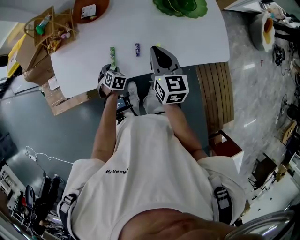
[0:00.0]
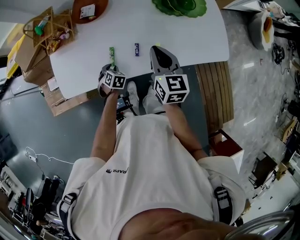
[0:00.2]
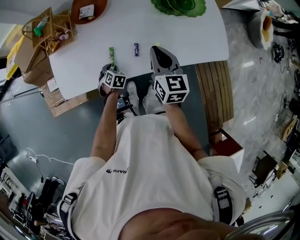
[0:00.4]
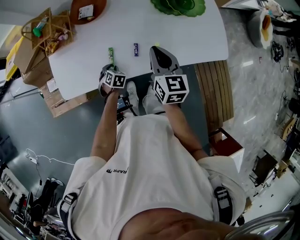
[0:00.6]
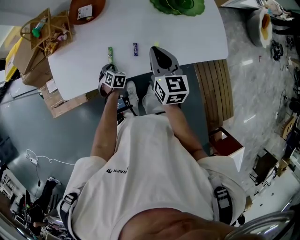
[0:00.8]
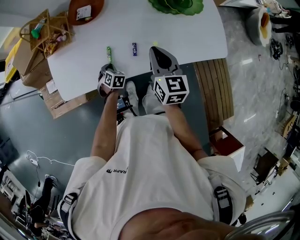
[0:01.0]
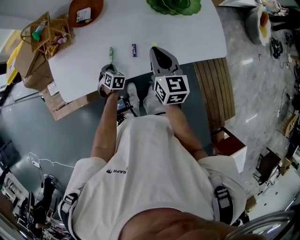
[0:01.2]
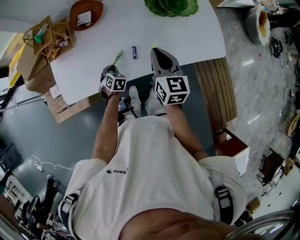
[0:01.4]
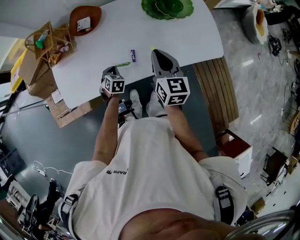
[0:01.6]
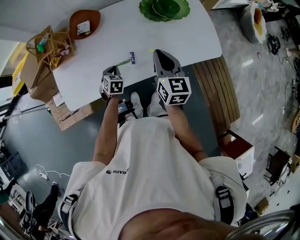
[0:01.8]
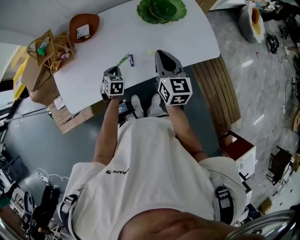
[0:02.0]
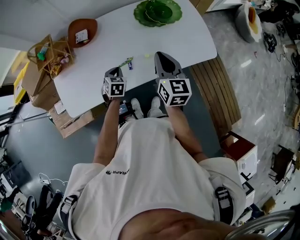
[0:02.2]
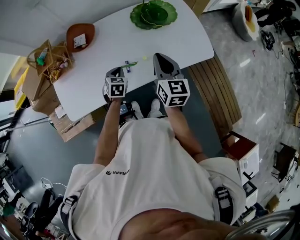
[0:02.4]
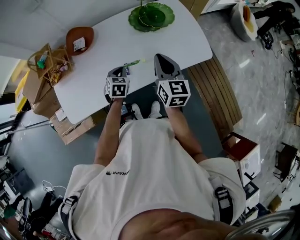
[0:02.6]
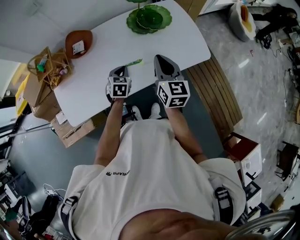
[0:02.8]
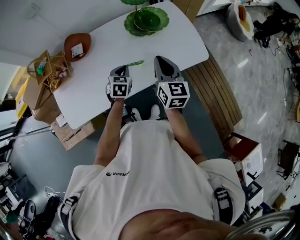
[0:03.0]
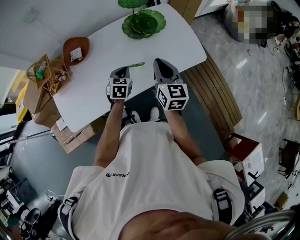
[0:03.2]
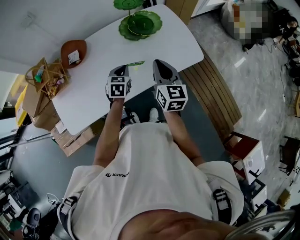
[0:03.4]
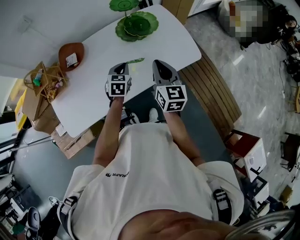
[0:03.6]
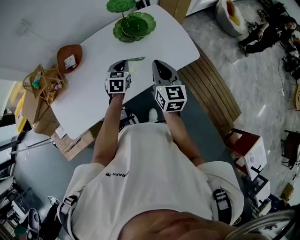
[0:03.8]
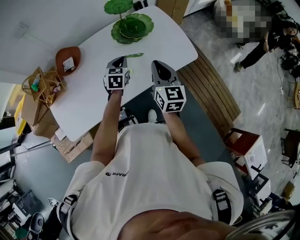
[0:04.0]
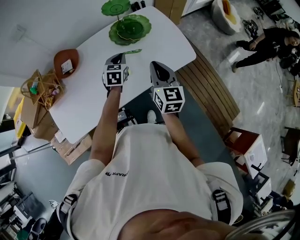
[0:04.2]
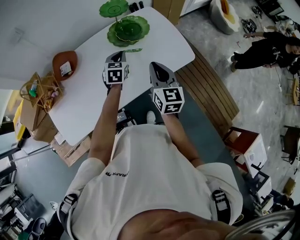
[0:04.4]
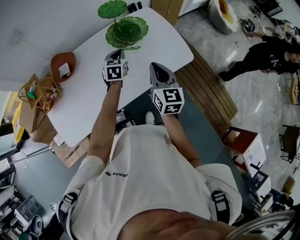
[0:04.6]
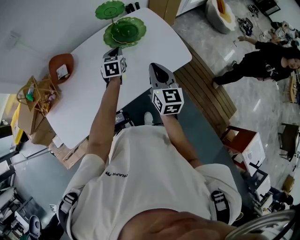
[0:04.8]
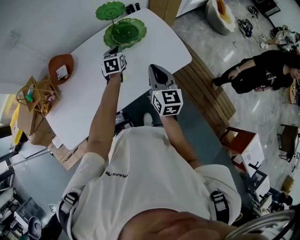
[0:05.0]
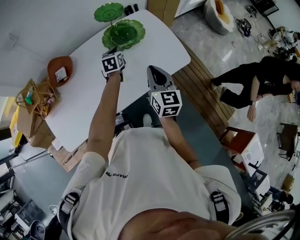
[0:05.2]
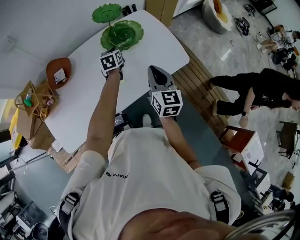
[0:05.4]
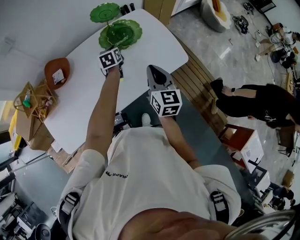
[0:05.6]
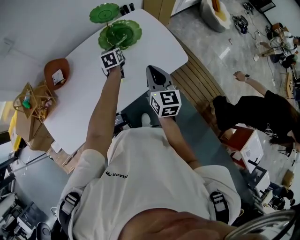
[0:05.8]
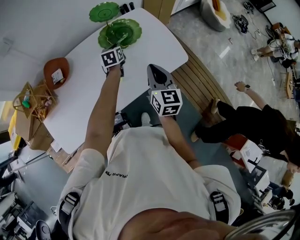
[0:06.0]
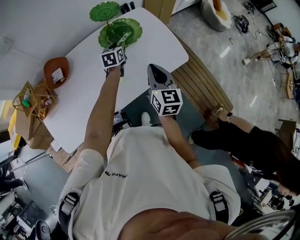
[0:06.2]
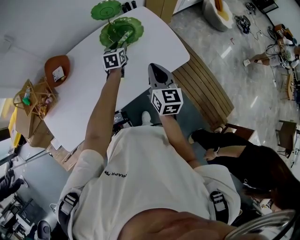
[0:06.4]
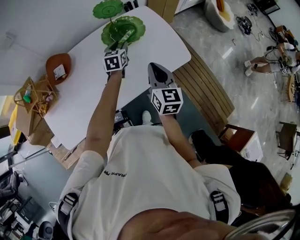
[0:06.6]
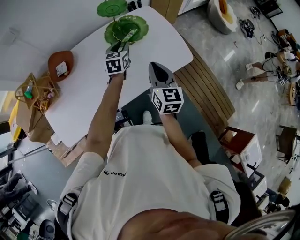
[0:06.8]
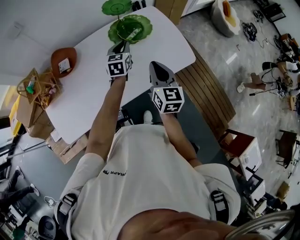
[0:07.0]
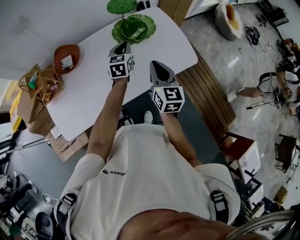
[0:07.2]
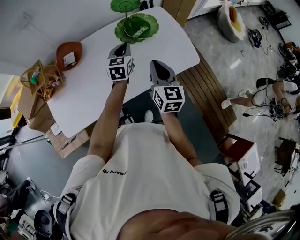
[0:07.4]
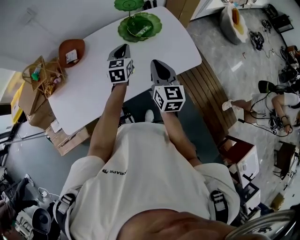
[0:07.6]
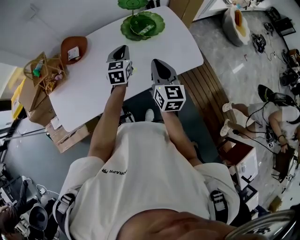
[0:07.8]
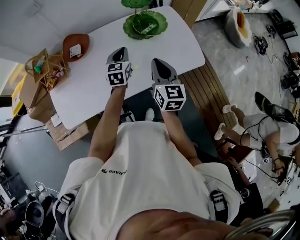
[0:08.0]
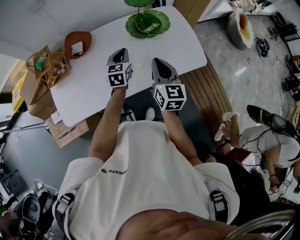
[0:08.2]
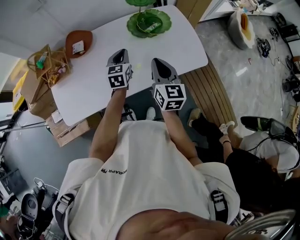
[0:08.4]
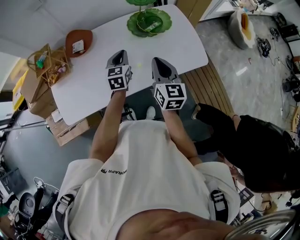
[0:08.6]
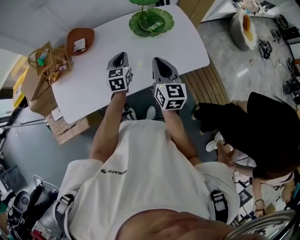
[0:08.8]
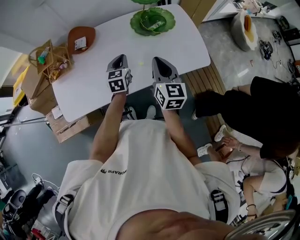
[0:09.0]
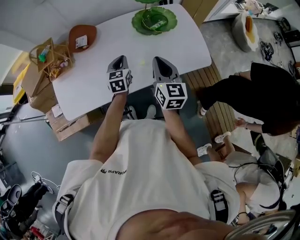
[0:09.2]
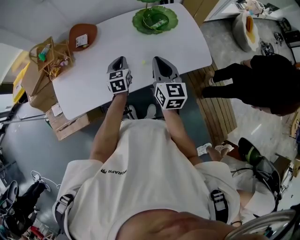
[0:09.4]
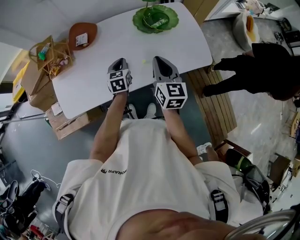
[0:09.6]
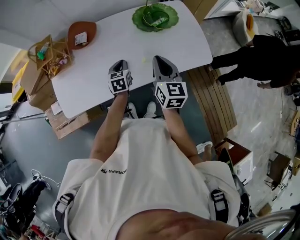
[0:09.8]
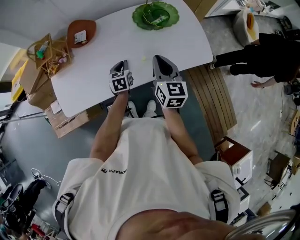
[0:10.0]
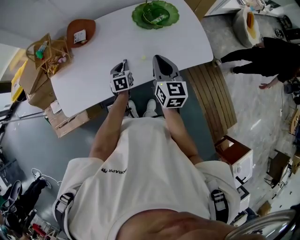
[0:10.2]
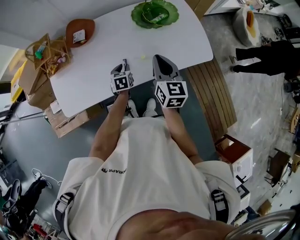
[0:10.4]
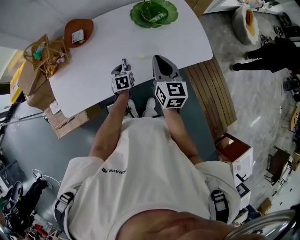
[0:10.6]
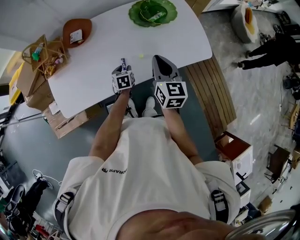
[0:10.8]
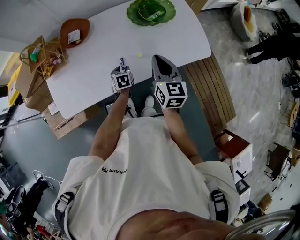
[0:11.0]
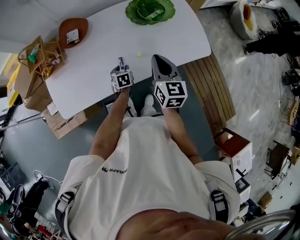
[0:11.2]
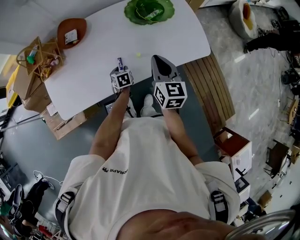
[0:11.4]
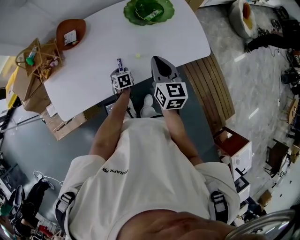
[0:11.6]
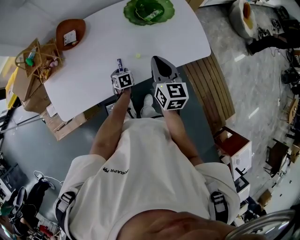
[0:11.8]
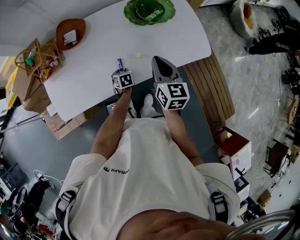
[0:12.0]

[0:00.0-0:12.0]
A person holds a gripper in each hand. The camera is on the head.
0:00.0 to 0:01.6: The left gripper changes place by roughly 5 cm, and closes its fingers.
0:01.6 to 0:03.0: The right gripper moves to the right and upward, approximately 10 cm, while the left gripper travels to the right and upward by about 20 cm, and turns by some 20 degrees.
0:03.0 to 0:04.4: The right gripper travels to the right by some 5 cm, while the left gripper goes some 15 cm forward, to the right and upward.
0:04.4 to 0:06.0: The left gripper shifts about 10 cm forward.
0:06.0 to 0:07.6: The right gripper travels to the left by some 5 cm, while the left gripper heads backward and upward, covering approximately 15 cm, and opens and closes again.
0:07.6 to 0:09.0: The left gripper shifts approximately 10 cm to the left, backward and downward.
0:09.0 to 0:10.4: The left gripper heads downward, covering approximately 15 cm.
0:10.4 to 0:12.0: The left gripper is displaced downward by approximately 10 cm.

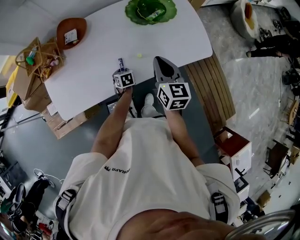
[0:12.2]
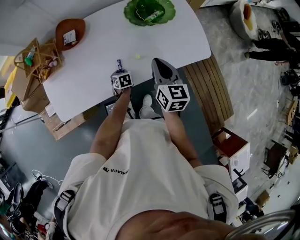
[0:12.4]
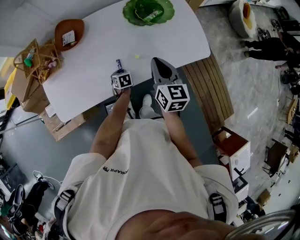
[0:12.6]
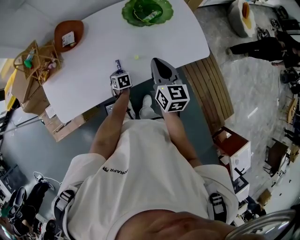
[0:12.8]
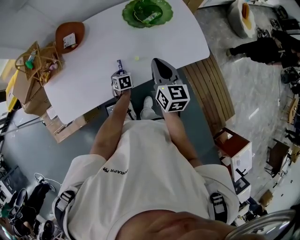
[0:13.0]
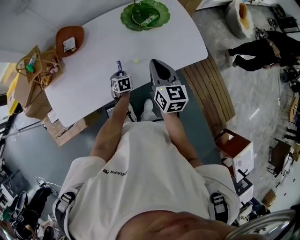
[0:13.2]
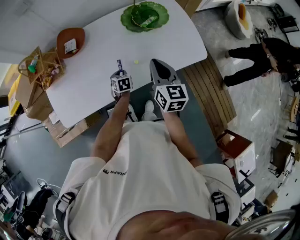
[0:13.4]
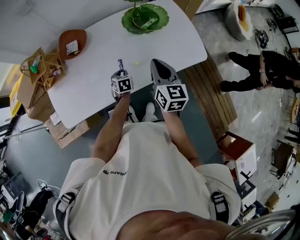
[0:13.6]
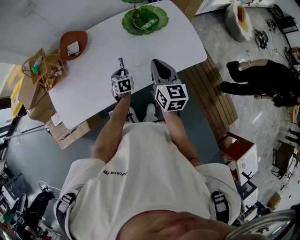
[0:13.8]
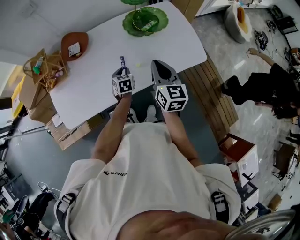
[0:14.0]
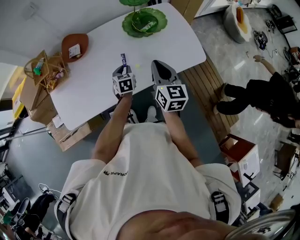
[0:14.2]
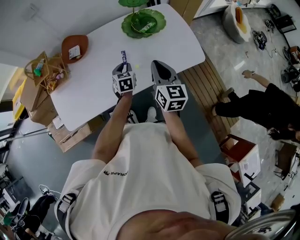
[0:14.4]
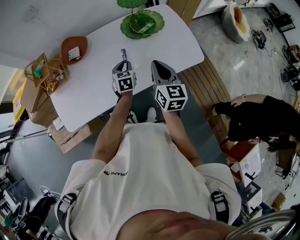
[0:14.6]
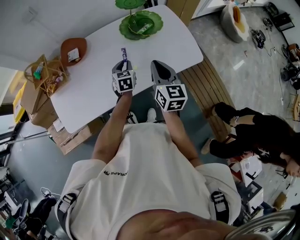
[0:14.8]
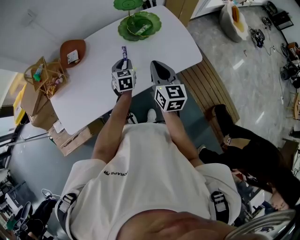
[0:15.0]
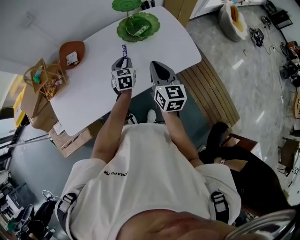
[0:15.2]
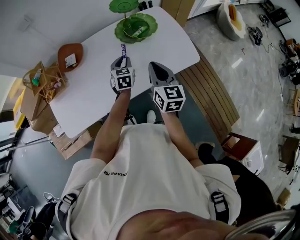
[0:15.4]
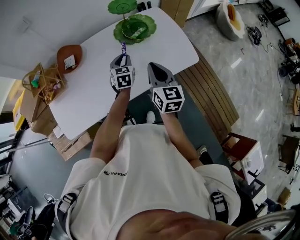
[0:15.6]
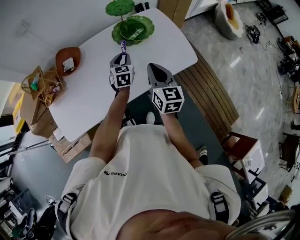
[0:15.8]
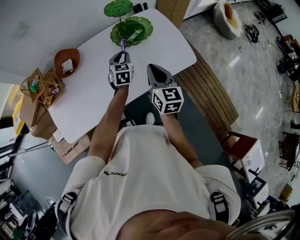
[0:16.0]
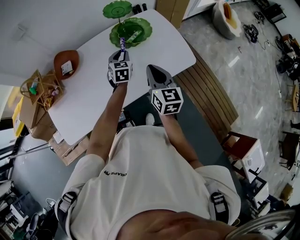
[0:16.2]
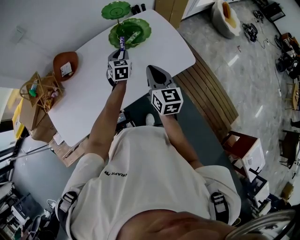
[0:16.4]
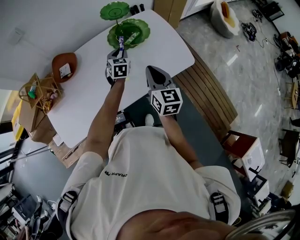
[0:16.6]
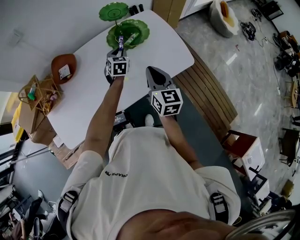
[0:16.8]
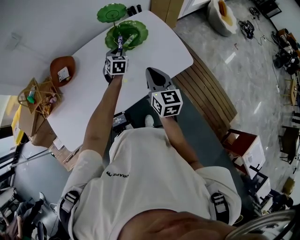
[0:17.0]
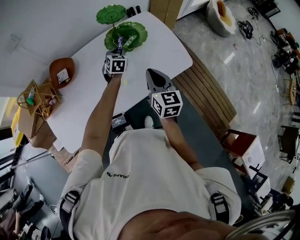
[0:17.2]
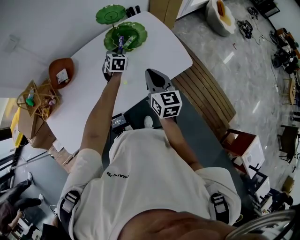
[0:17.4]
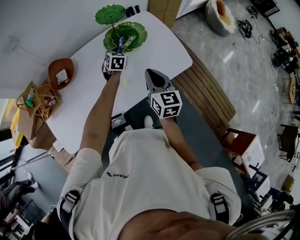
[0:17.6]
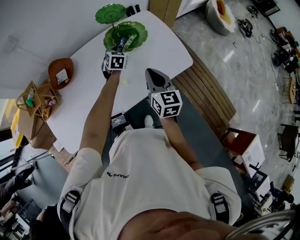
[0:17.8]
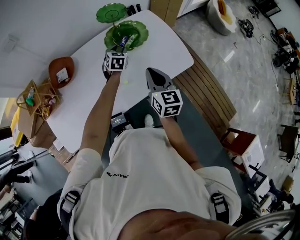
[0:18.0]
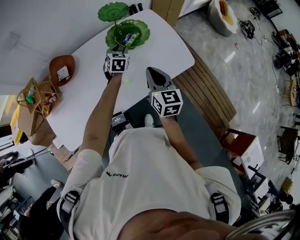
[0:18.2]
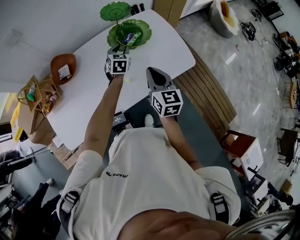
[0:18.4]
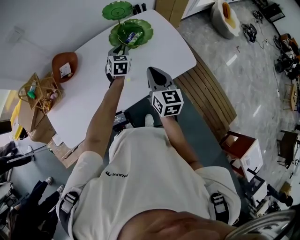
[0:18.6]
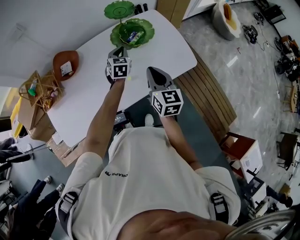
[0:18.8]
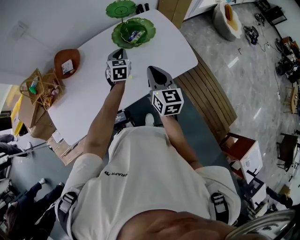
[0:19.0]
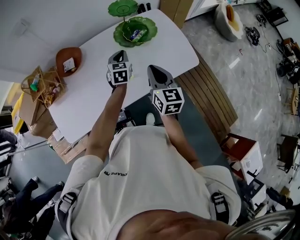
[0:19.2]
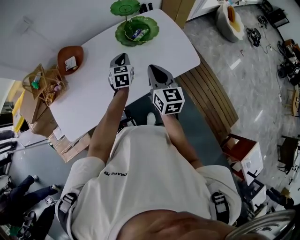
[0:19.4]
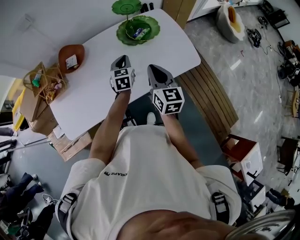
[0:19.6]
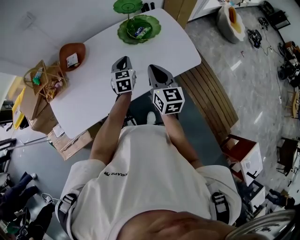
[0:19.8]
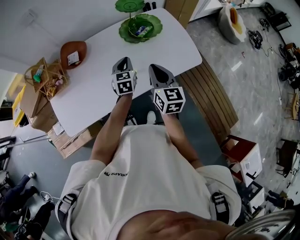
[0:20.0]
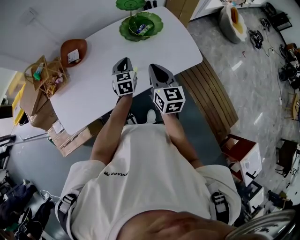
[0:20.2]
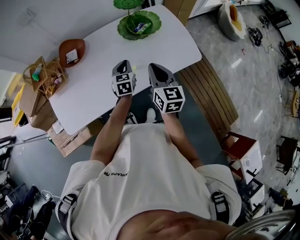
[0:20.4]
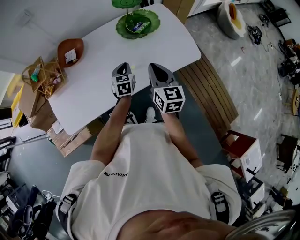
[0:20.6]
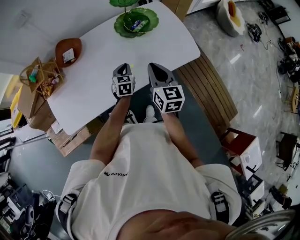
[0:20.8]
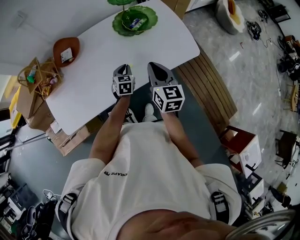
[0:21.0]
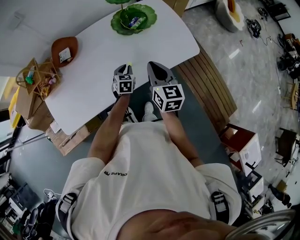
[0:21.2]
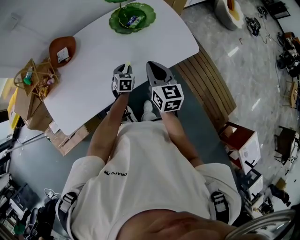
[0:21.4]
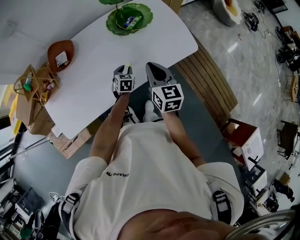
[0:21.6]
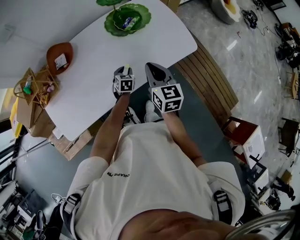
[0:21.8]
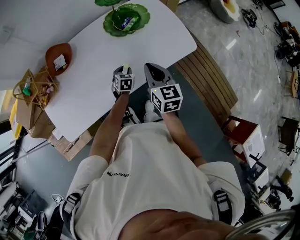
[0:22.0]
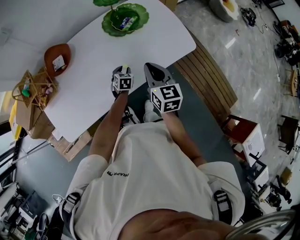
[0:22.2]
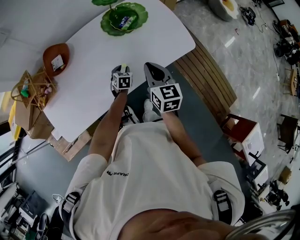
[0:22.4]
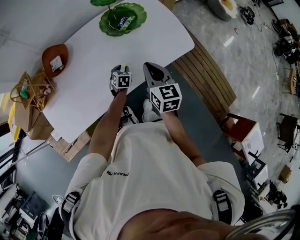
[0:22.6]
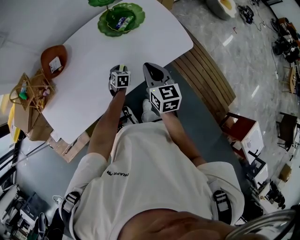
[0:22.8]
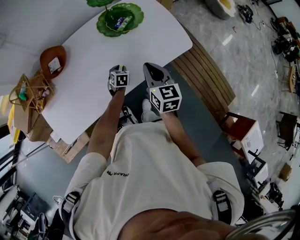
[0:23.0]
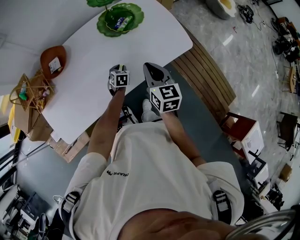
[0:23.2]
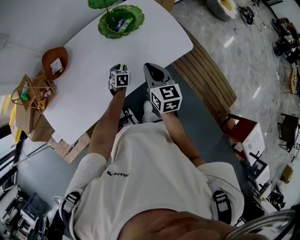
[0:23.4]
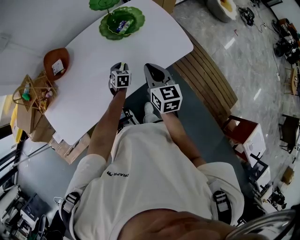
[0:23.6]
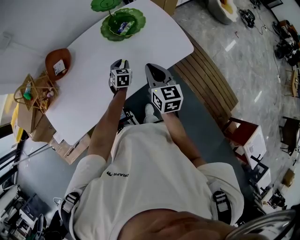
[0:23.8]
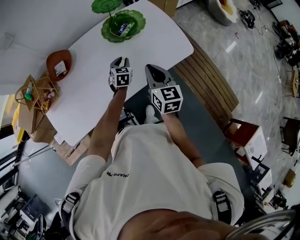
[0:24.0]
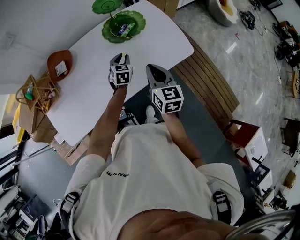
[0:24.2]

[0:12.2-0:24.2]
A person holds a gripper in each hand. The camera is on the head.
0:12.2 to 0:13.8: The left gripper travels upward by some 10 cm.
0:13.8 to 0:15.2: The left gripper travels upward, to the right and forward by approximately 15 cm.
0:15.2 to 0:16.6: The left gripper goes about 10 cm forward.
0:18.2 to 0:19.8: The left gripper heads backward, covering roughly 15 cm, and closes its fingers; the right gripper ends up roughly 5 cm from where it was.
0:19.8 to 0:21.2: The left gripper travels downward by approximately 15 cm.
0:21.2 to 0:22.6: The left gripper travels downward by some 10 cm.
0:22.6 to 0:24.2: The left gripper goes roughly 15 cm upward and forward.
